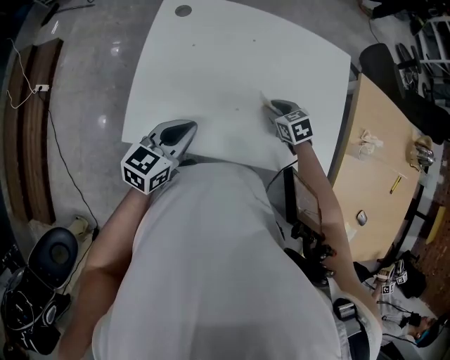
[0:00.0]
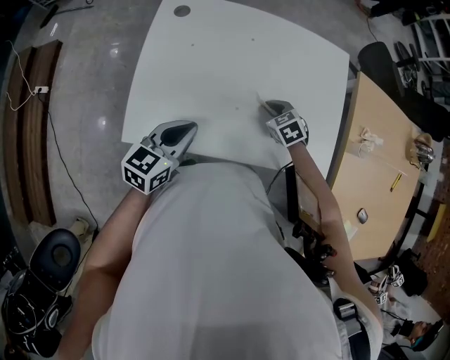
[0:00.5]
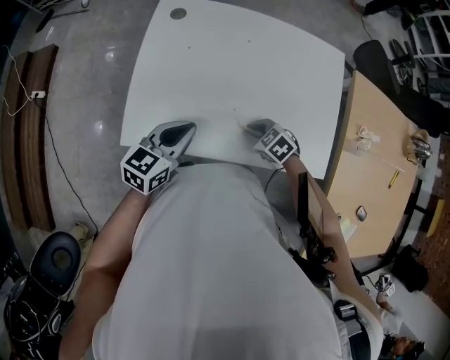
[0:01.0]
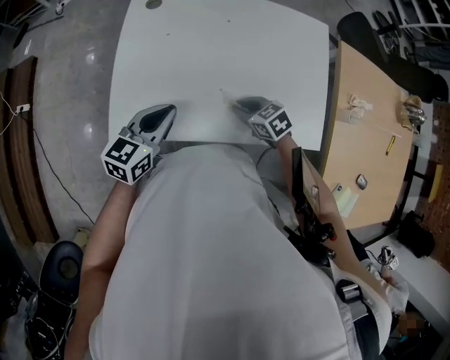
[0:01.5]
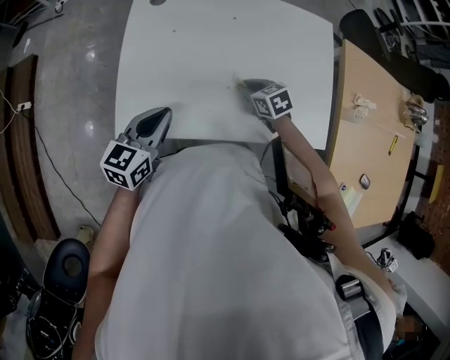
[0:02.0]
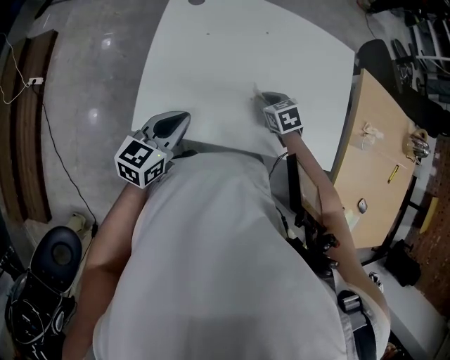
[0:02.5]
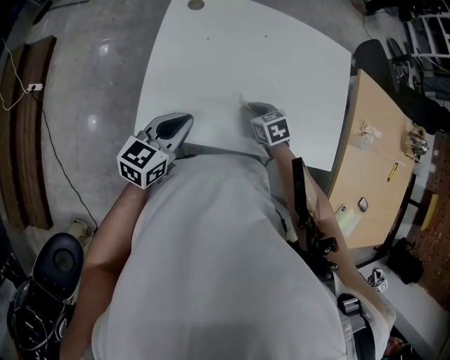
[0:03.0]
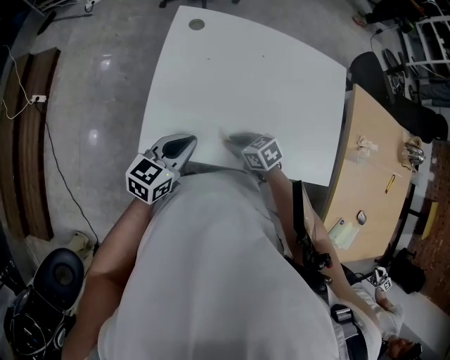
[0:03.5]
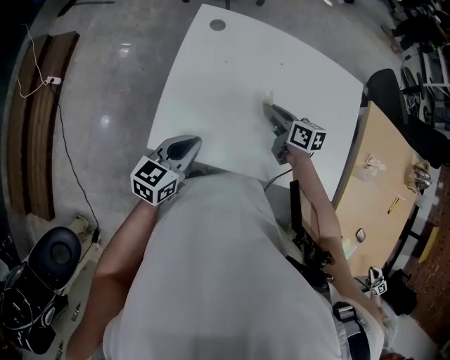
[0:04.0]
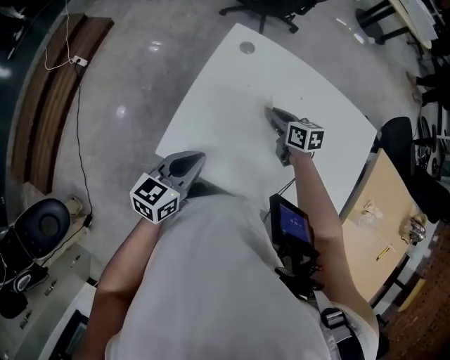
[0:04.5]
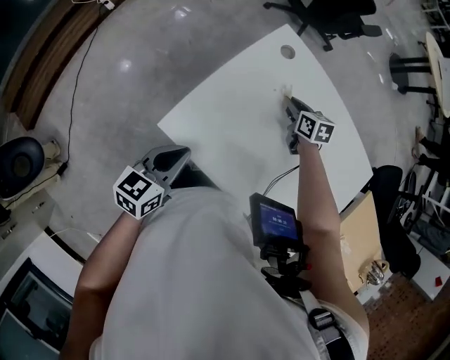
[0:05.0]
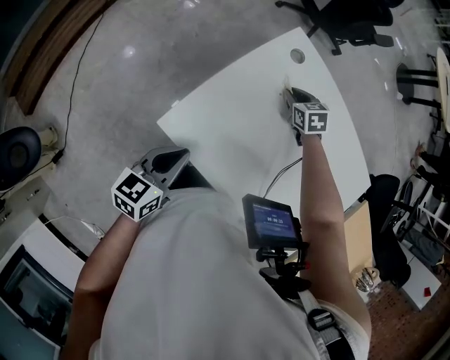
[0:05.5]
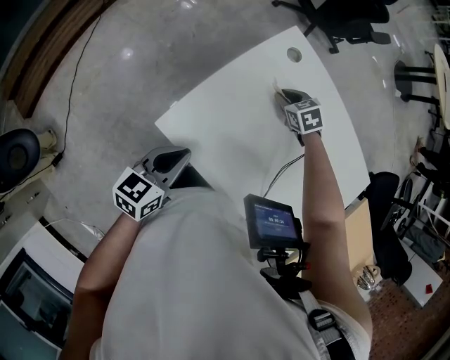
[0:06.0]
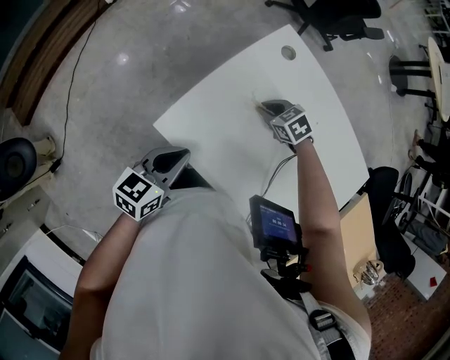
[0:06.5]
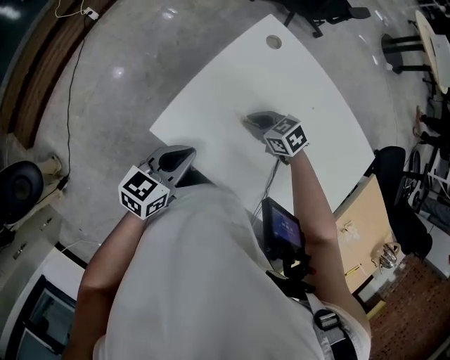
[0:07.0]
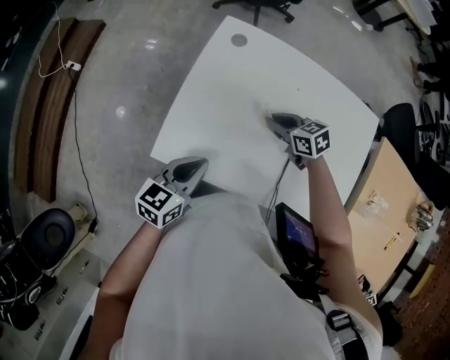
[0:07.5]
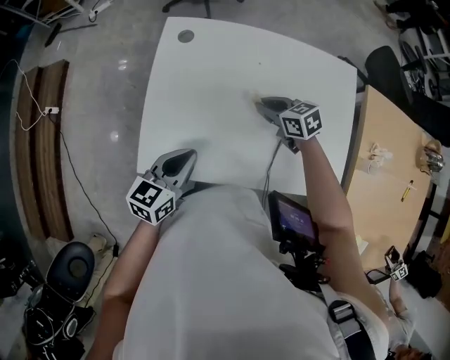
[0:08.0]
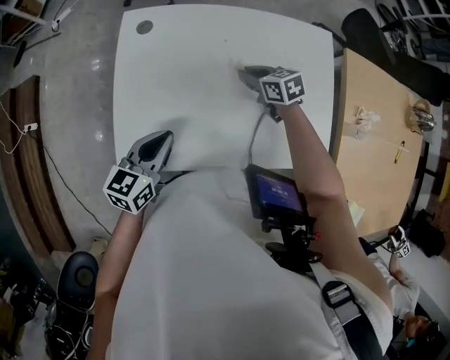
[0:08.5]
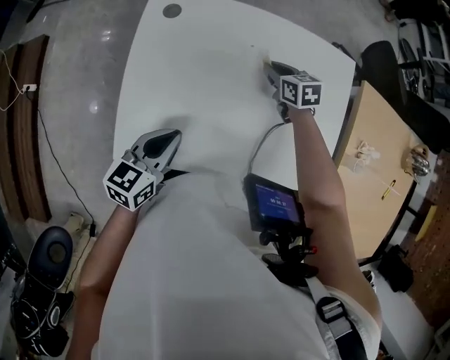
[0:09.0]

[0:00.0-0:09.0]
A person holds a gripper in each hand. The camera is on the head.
0:00.0 to 0:02.0: The right gripper is displaced to the left by roughly 5 cm, and moves about 10 cm backward and comes back.
0:02.0 to 0:04.5: The right gripper heads forward, to the left and upward, covering roughly 20 cm, and swivels some 20 degrees.
0:04.5 to 0:07.0: The right gripper is displaced to the left by approximately 10 cm, travels forward and back again, about 10 cm each way, and changes its angle by some 50 degrees.
0:07.0 to 0:09.0: The left gripper ends up some 10 cm from where it was, and changes its angle by some 20 degrees. Meanwhile the right gripper shifts by approximately 25 cm, and rotates some 60 degrees.

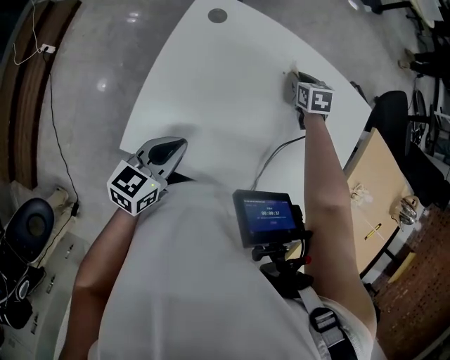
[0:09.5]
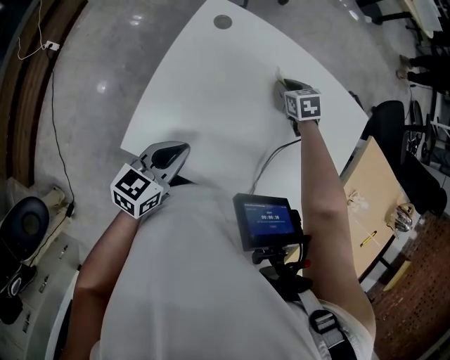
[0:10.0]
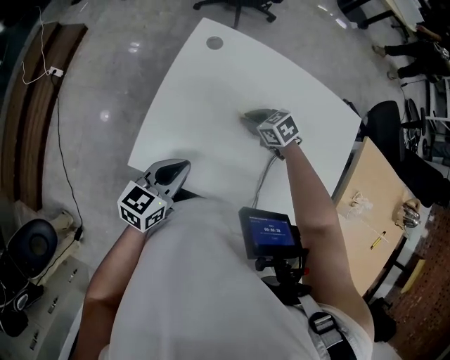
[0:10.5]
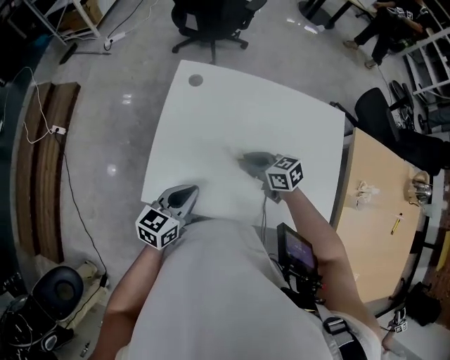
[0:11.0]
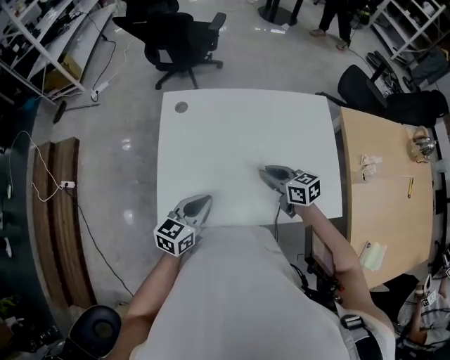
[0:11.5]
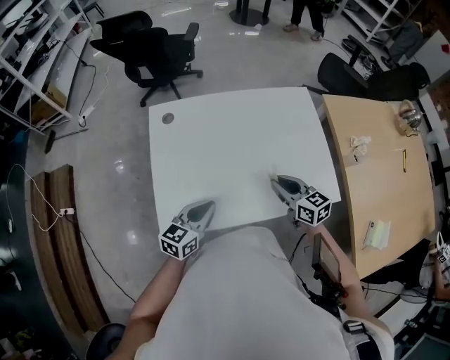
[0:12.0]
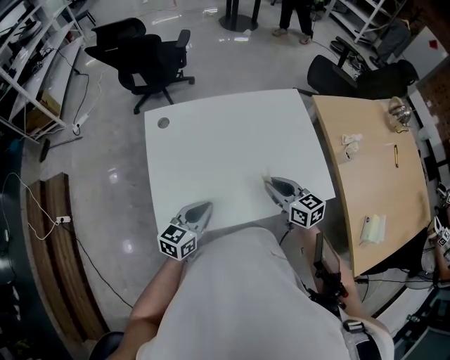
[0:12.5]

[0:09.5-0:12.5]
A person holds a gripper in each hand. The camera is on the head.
0:09.5 to 0:11.0: The right gripper ends up about 25 cm from where it was, and turns by some 40 degrees.
0:11.0 to 0:12.5: The right gripper shifts by about 15 cm, and changes its angle by roughly 40 degrees. The left gripper rotates some 20 degrees.

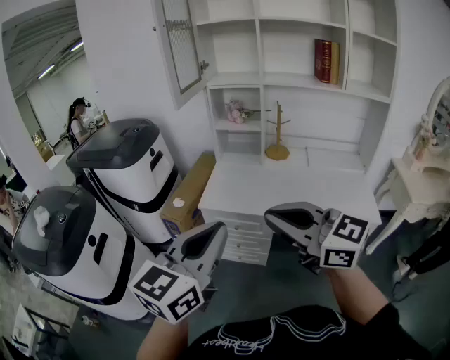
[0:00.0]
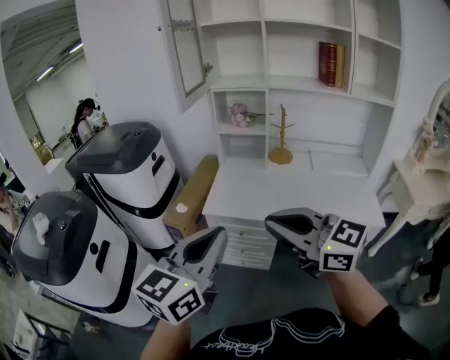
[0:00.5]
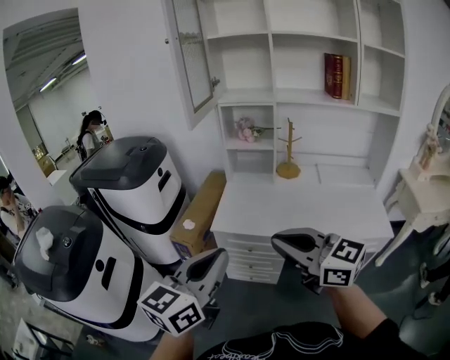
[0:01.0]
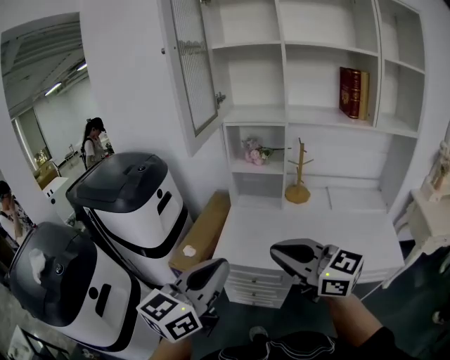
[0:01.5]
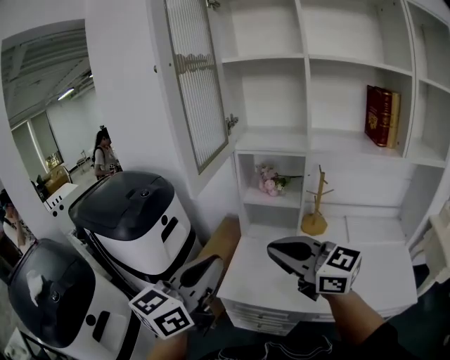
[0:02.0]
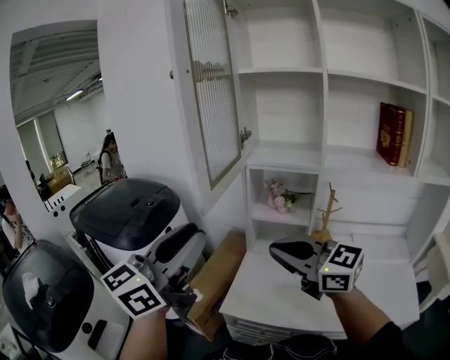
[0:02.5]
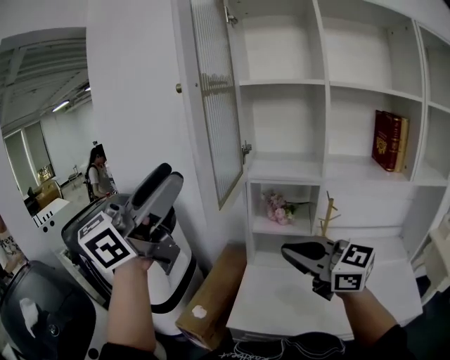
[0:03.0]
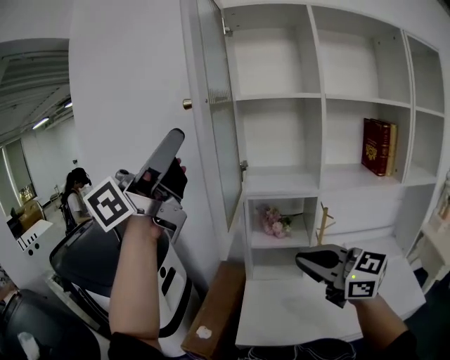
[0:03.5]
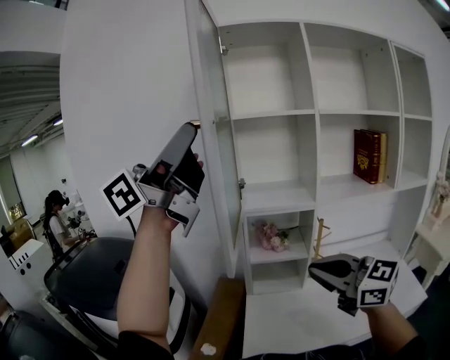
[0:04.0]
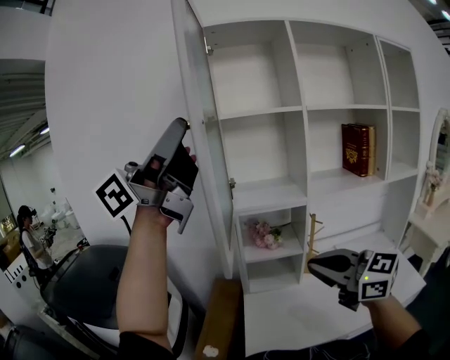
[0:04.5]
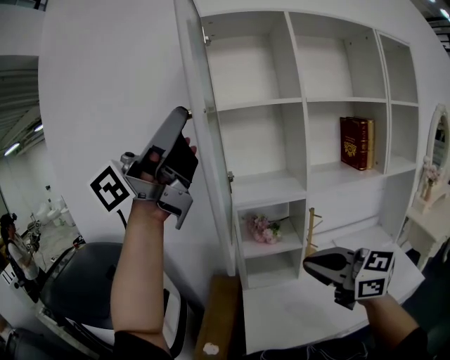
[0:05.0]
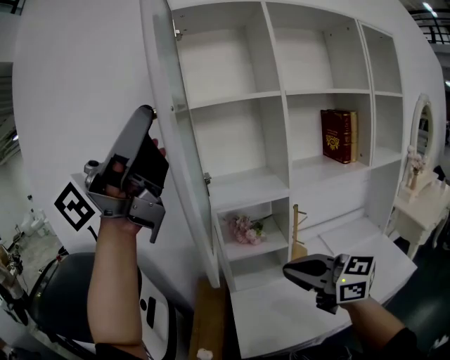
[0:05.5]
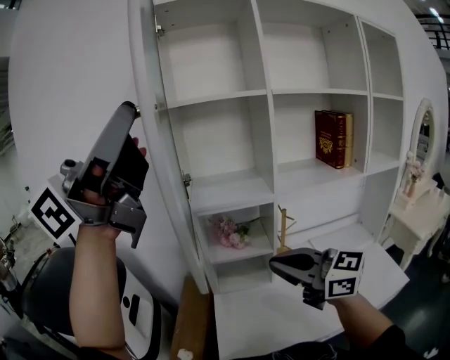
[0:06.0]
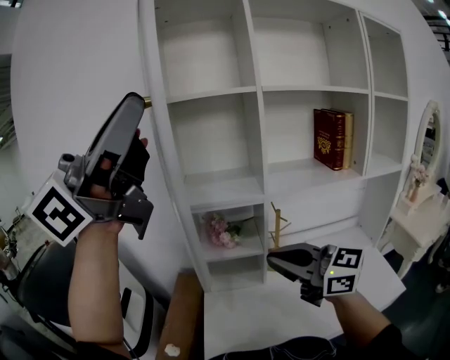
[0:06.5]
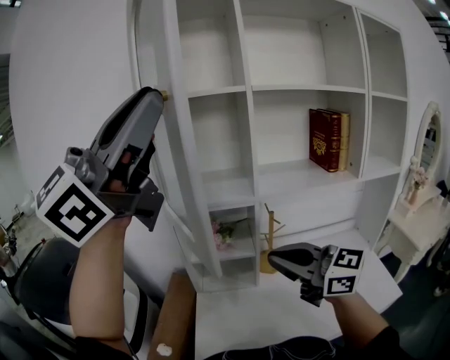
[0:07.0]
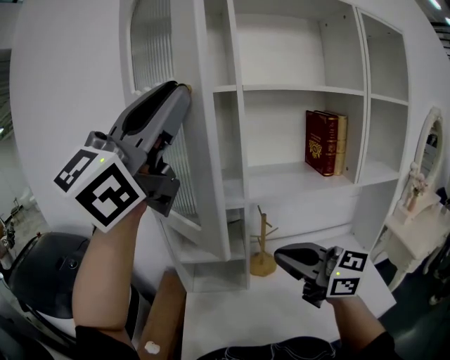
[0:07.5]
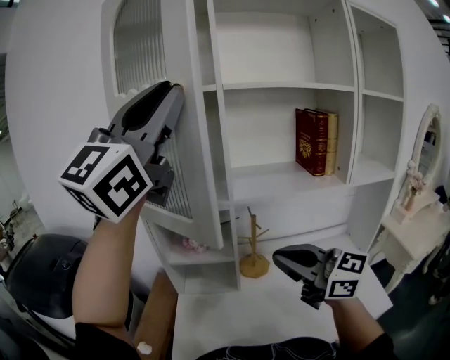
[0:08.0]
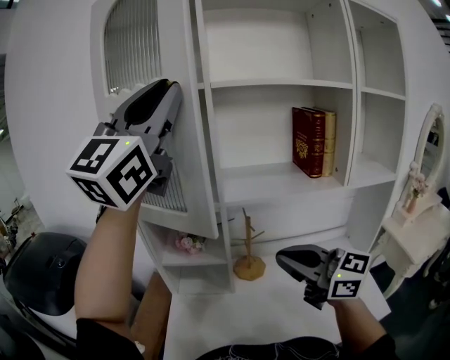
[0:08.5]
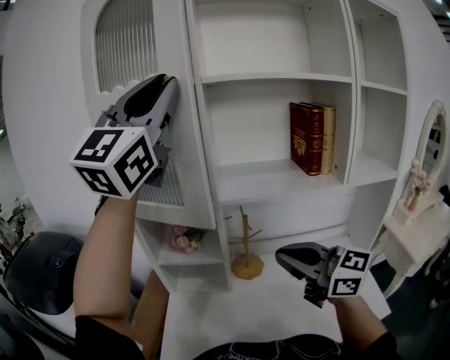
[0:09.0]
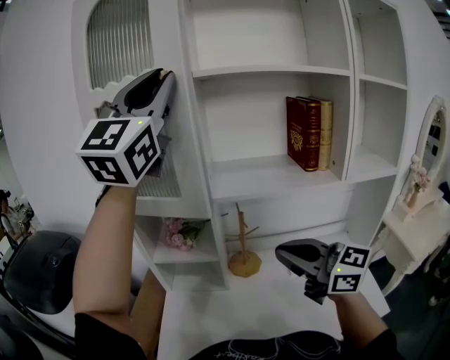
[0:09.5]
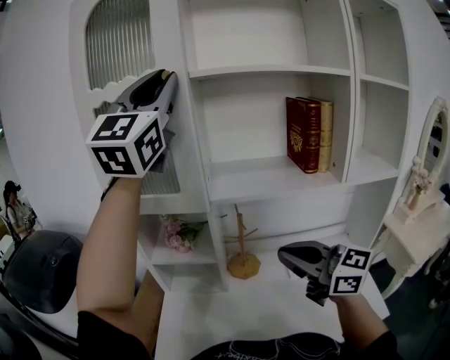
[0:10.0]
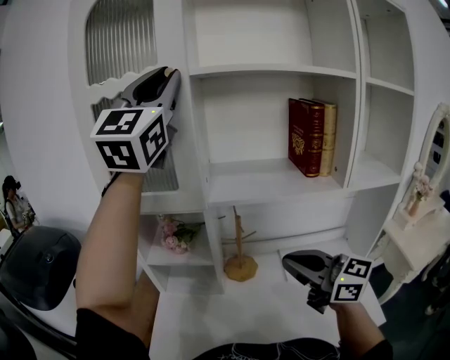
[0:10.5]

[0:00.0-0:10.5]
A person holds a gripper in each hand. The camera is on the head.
0:00.0 to 0:02.0: The two grippers go some 30 cm forward.
0:02.0 to 0:04.0: The left gripper heads upward, covering some 35 cm, tips its fingers upward by approximately 40 degrees, and opens up; the right gripper goes some 5 cm upward, and changes its angle by about 20 degrees.
0:04.0 to 0:06.5: The left gripper moves roughly 10 cm, rotates some 20 degrees, and closes its fingers. Meanwhile the right gripper ends up roughly 10 cm from where it was.
0:06.5 to 0:08.5: The right gripper travels to the right by some 15 cm. The left gripper heads to the right and forward, covering about 20 cm, and turns by about 40 degrees.
0:08.5 to 0:10.5: The right gripper moves to the right, about 5 cm. The left gripper moves forward and to the right, roughly 10 cm.

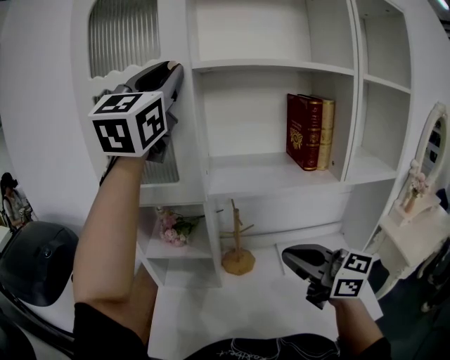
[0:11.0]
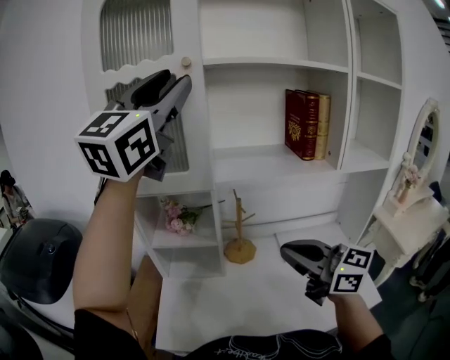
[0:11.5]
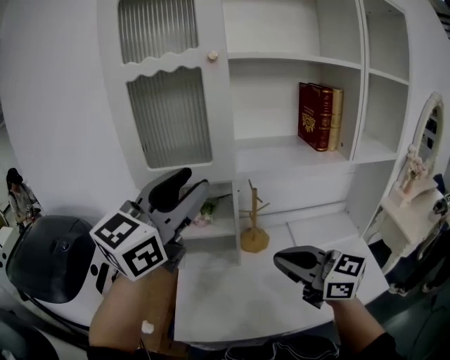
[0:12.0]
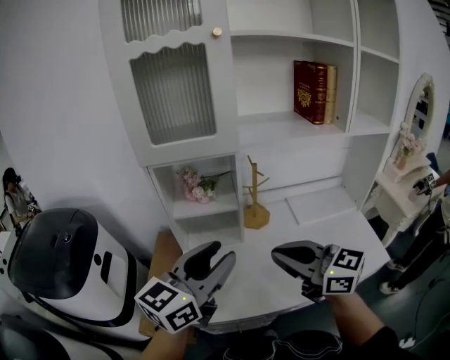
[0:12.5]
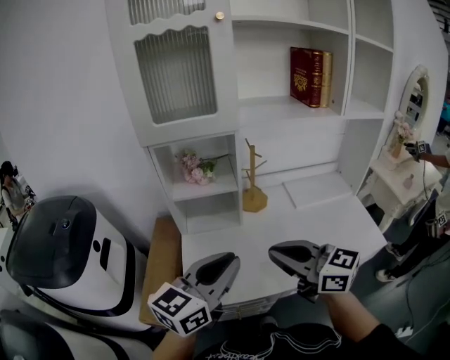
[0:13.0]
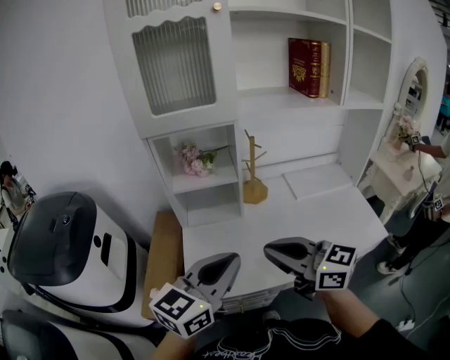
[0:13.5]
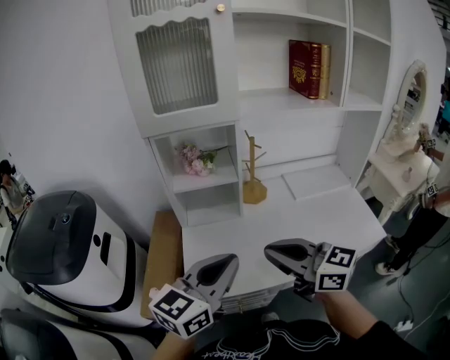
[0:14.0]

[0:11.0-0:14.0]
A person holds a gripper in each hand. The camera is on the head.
0:11.0 to 0:12.5: The left gripper heads downward and backward, covering about 40 cm, and twists some 40 degrees counterclockwise, seen from behind. The right gripper travels to the left and backward by roughly 20 cm.
0:12.5 to 0:14.0: The left gripper is displaced backward and downward by some 10 cm, and closes its fingers; the right gripper is displaced backward by roughly 5 cm.
